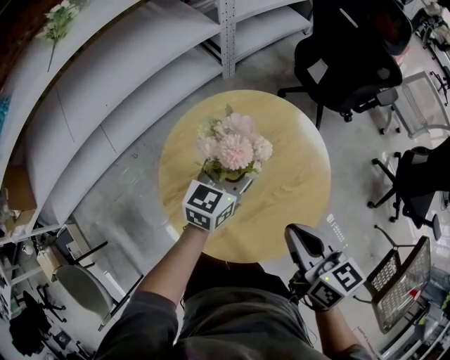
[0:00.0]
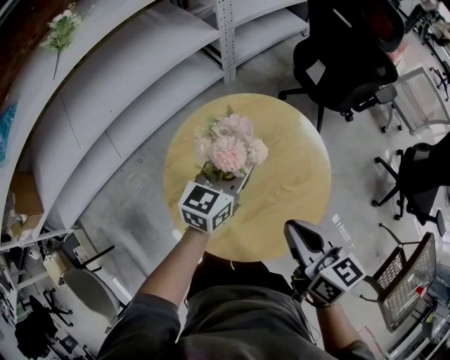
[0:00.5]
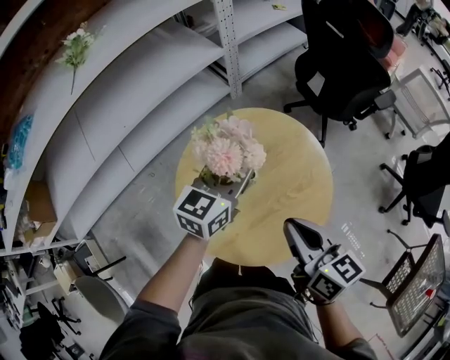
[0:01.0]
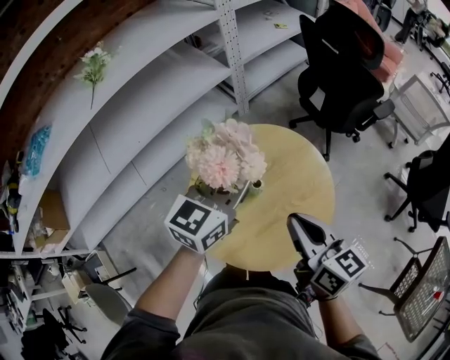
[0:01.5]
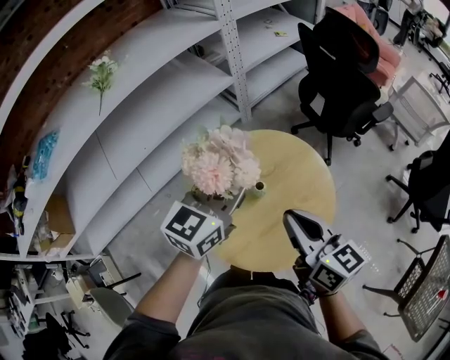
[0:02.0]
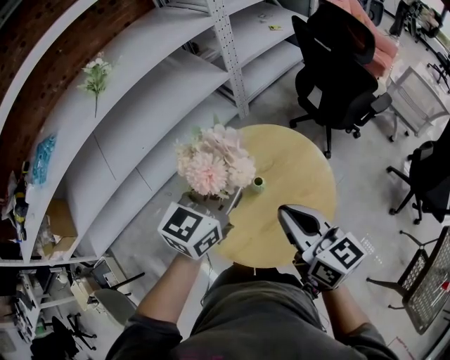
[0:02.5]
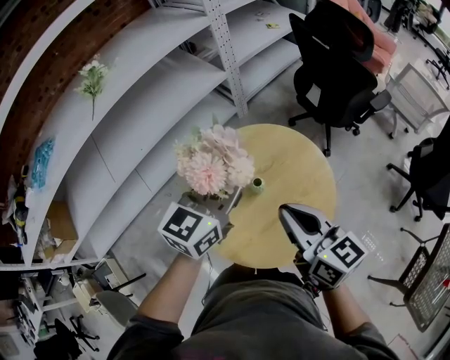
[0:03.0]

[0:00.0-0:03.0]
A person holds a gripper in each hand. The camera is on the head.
0:00.0 to 0:01.5: The left gripper moves upward, some 20 cm, and closes up, while the right gripper shifts some 10 cm upward.
0:01.5 to 0:03.0: The grippers move only a little.

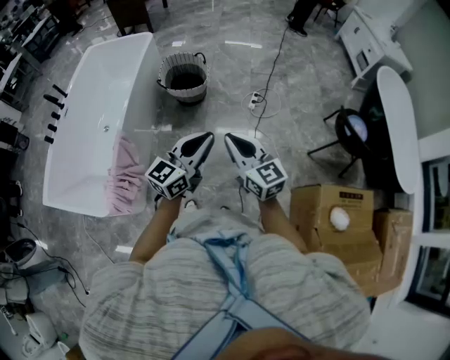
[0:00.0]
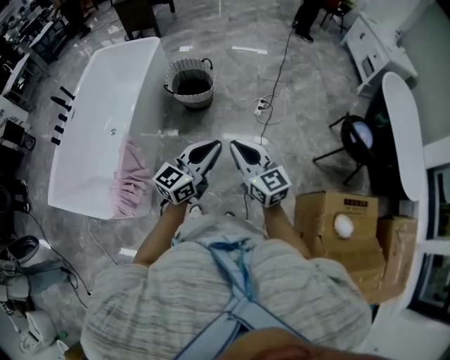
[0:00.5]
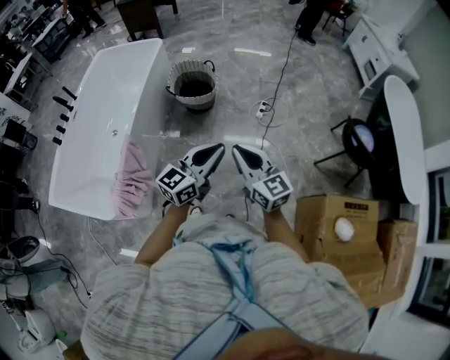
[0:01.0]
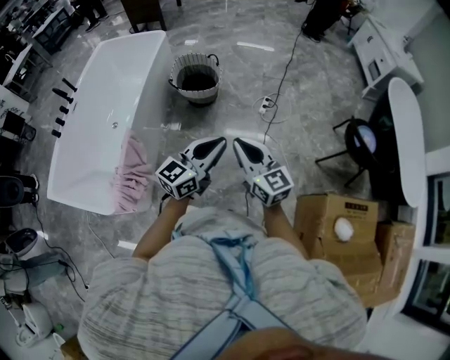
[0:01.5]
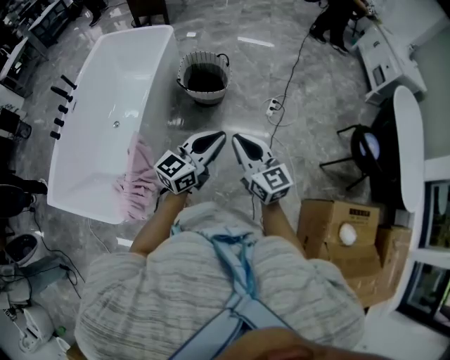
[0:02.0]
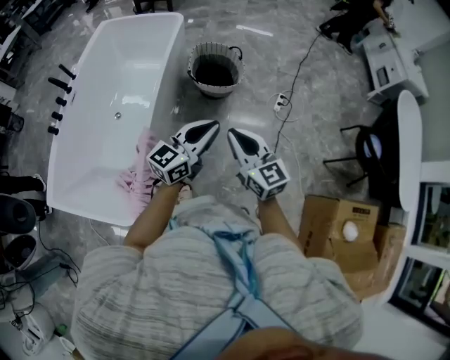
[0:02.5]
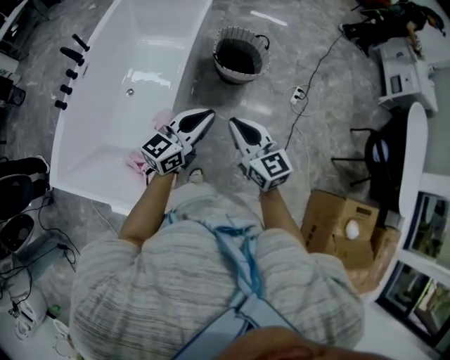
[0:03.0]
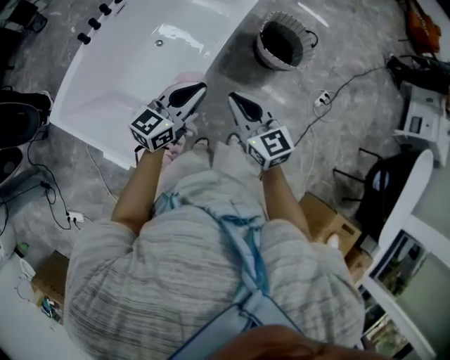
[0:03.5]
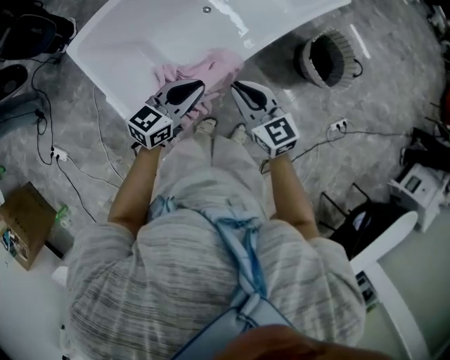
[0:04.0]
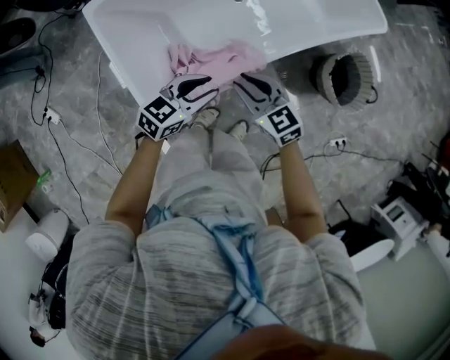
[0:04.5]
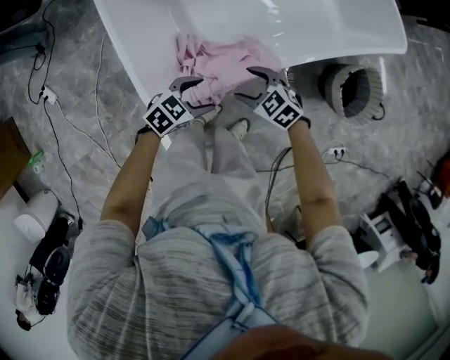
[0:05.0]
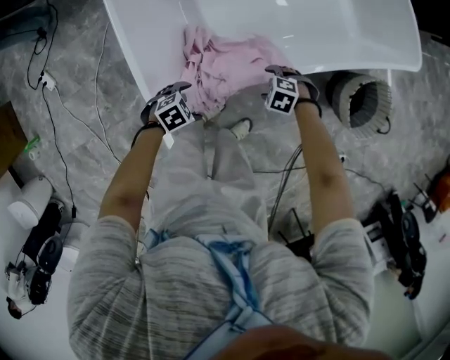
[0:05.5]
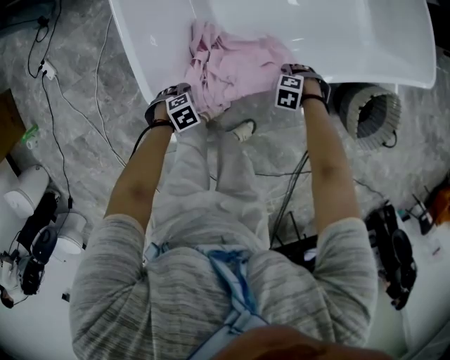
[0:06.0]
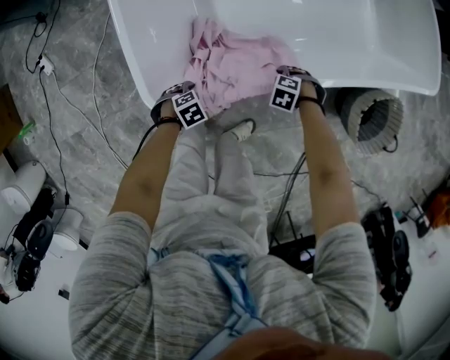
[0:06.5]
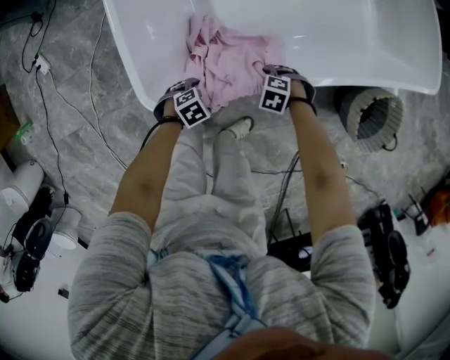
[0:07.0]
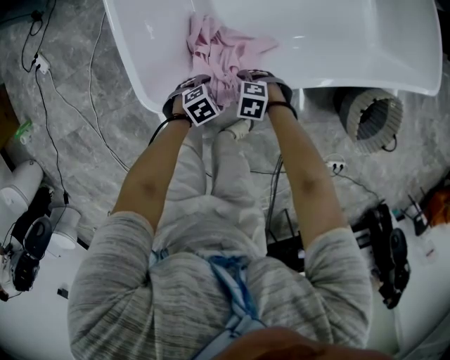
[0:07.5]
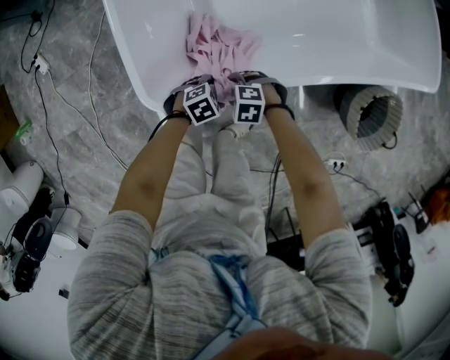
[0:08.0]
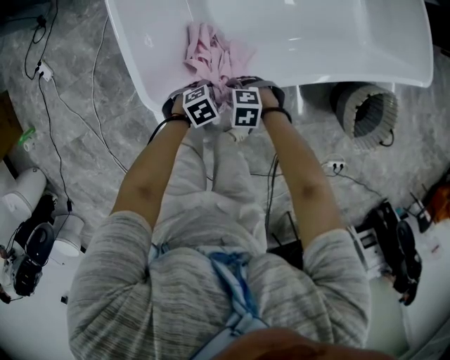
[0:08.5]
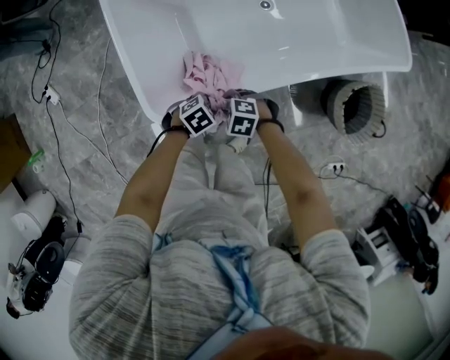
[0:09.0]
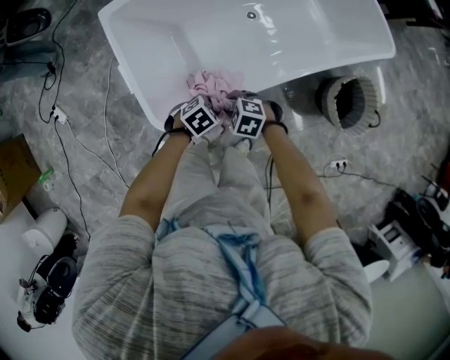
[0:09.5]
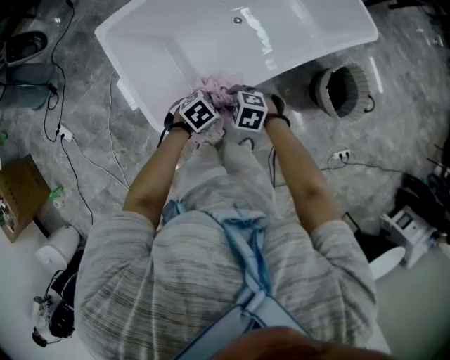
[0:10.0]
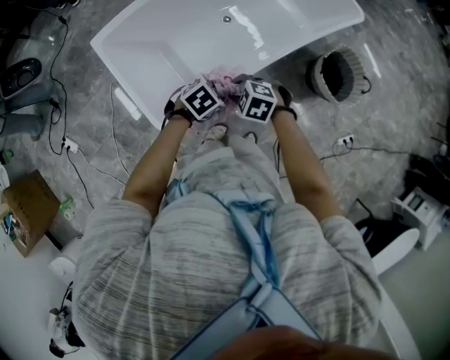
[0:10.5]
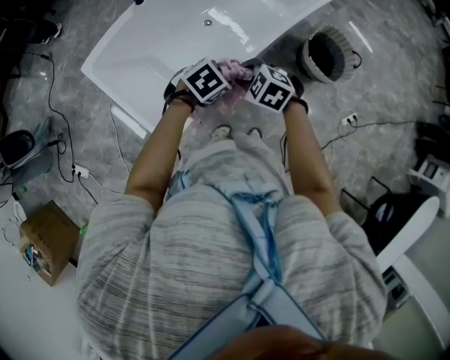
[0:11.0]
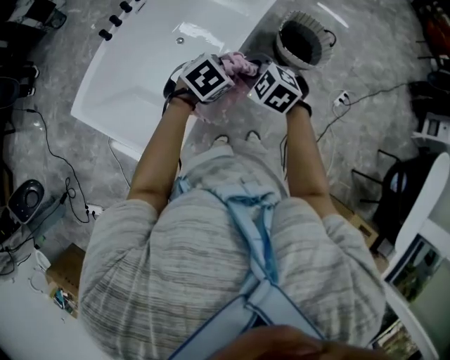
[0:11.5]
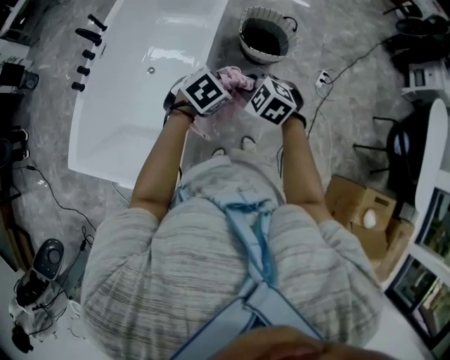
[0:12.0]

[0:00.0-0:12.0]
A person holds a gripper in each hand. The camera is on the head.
0:00.0 to 0:02.0: The grippers both shift to the left and forward by about 15 cm.
0:02.0 to 0:04.0: Both grippers are carried approximately 50 cm. The right gripper turns by about 50 degrees. The left gripper swivels some 40 degrees.
0:04.0 to 0:06.0: Both grippers move downward, about 40 cm. The right gripper points its fingers roughly 60 degrees further downward, and opens its fingers. The left gripper tilts its fingers roughly 60 degrees downward, and opens.
0:06.0 to 0:08.0: The left gripper moves about 10 cm; the right gripper ends up roughly 20 cm from where it was, and swivels about 20 degrees.
0:08.0 to 0:10.0: Both grippers move upward, some 25 cm. The left gripper closes. The right gripper rotates about 30 degrees, and closes up.
0:10.0 to 0:12.0: The right gripper moves some 30 cm, and turns by some 60 degrees; the left gripper ends up some 30 cm from where it was, and rolls clockwise, seen from behind, by some 50 degrees.

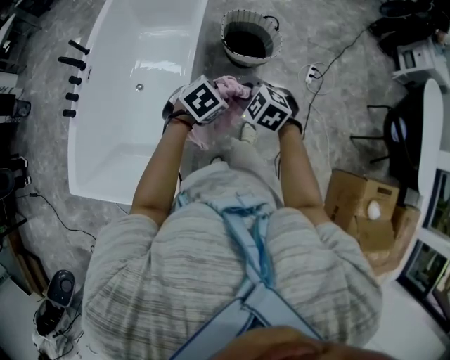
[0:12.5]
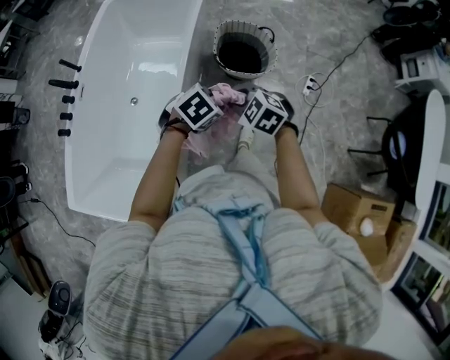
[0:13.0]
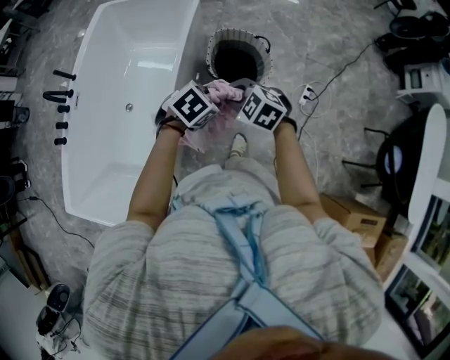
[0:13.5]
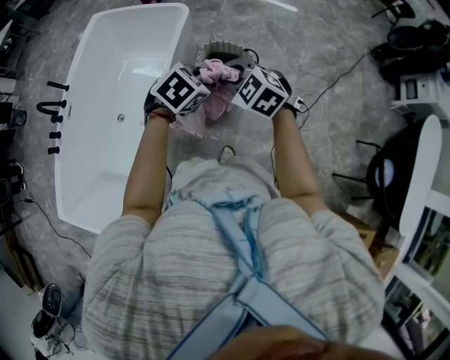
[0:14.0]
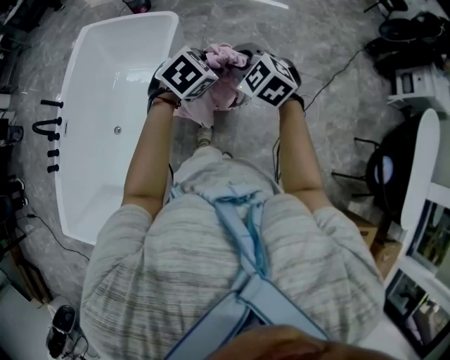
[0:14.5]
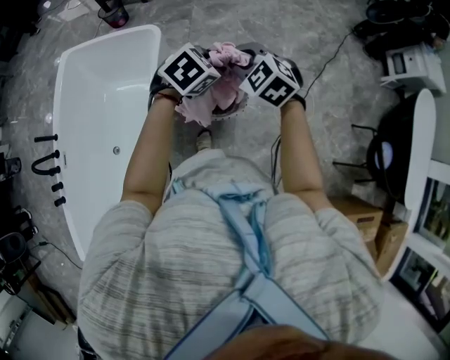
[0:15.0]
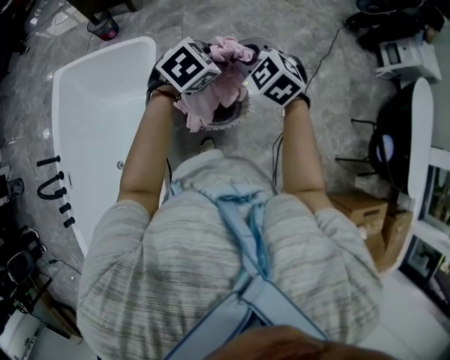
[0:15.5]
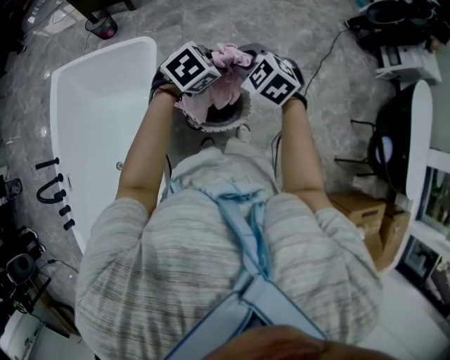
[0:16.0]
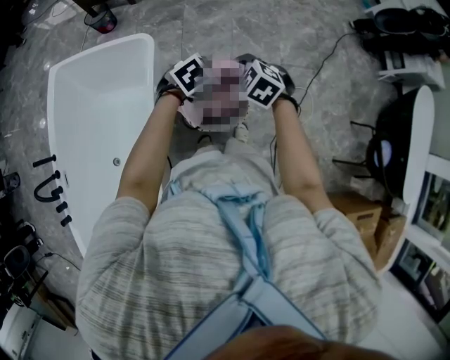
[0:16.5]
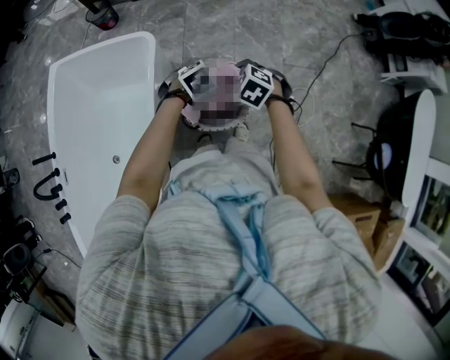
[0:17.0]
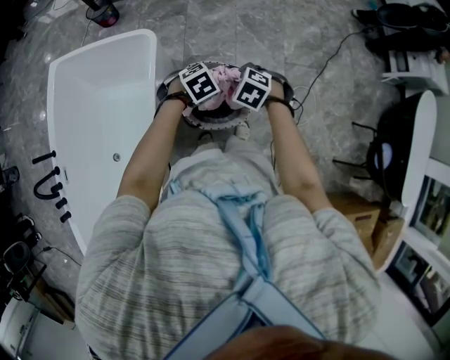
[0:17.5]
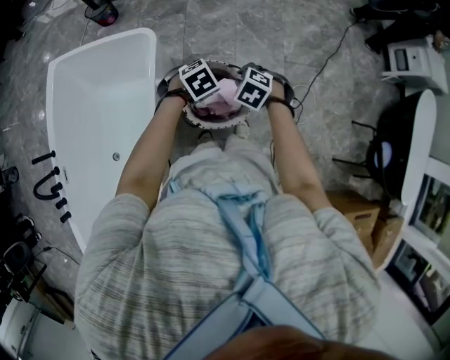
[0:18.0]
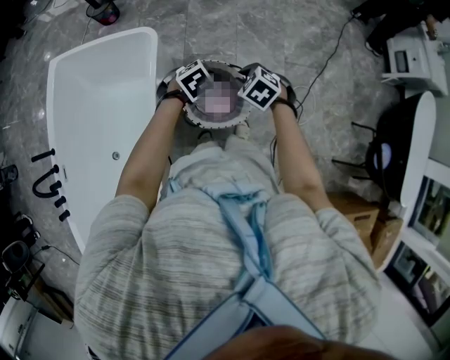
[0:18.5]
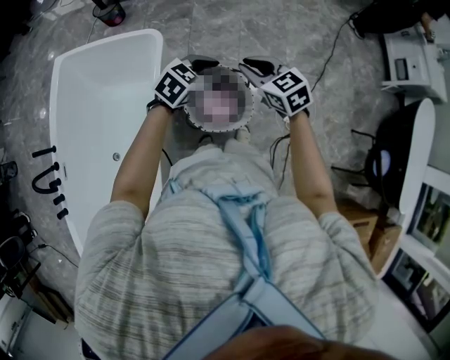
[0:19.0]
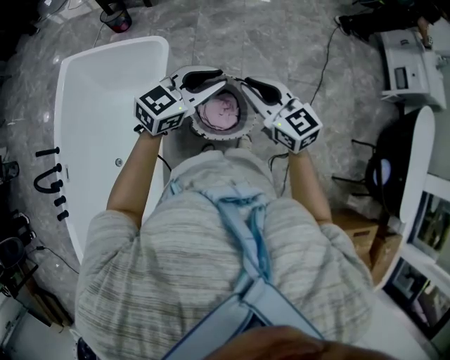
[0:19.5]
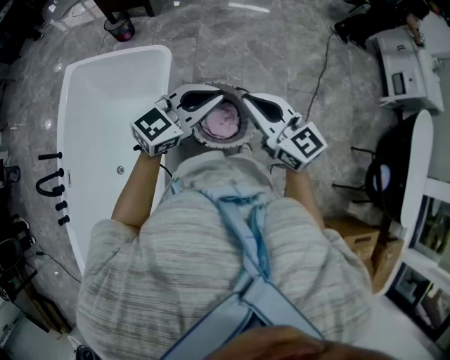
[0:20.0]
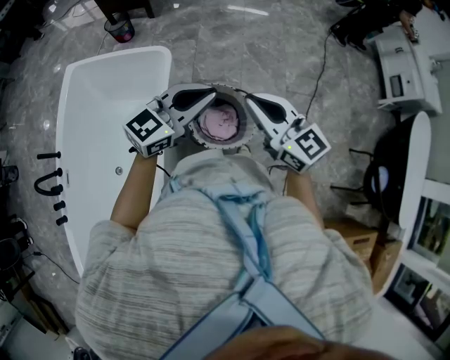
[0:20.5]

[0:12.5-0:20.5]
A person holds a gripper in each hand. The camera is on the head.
0:12.5 to 0:14.5: The pair of grippers is taken about 40 cm.
0:14.5 to 0:16.5: Both grippers travel together forward and downward, about 20 cm. The left gripper swivels some 20 degrees.
0:16.5 to 0:18.5: The two grippers go roughly 5 cm downward.
0:18.5 to 0:20.5: The grippers both shift upward by roughly 25 cm. The right gripper points its fingers roughly 60 degrees further upward; the left gripper tips its fingers upward by some 60 degrees.

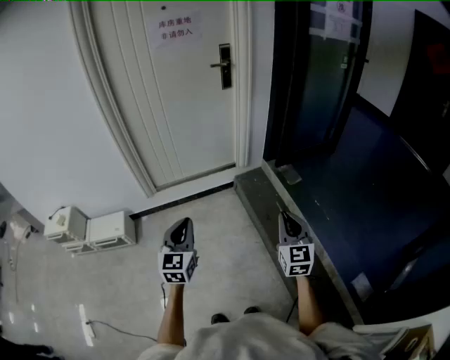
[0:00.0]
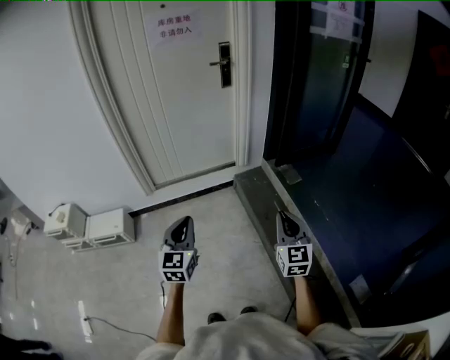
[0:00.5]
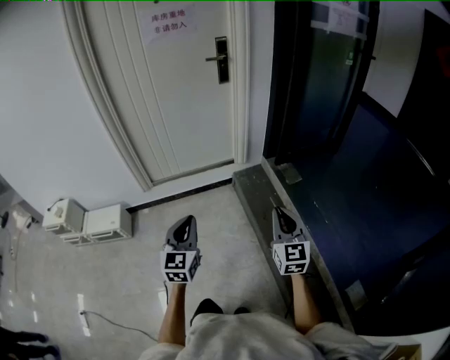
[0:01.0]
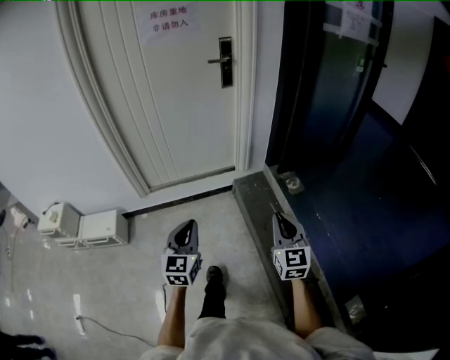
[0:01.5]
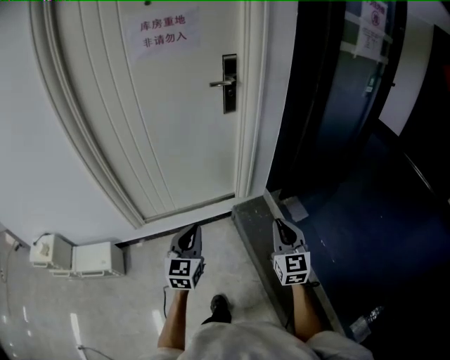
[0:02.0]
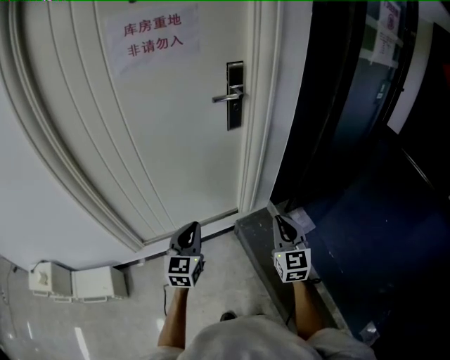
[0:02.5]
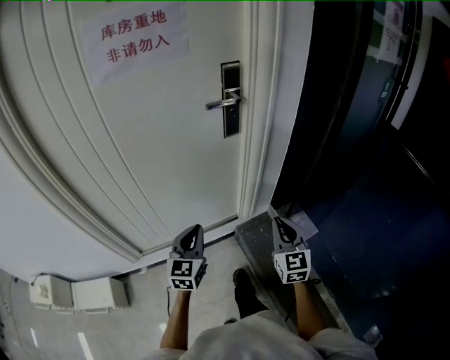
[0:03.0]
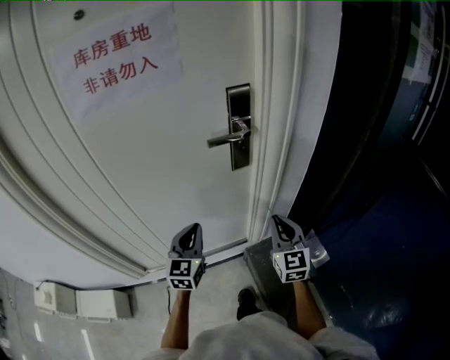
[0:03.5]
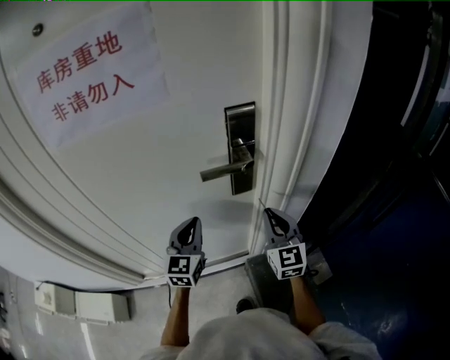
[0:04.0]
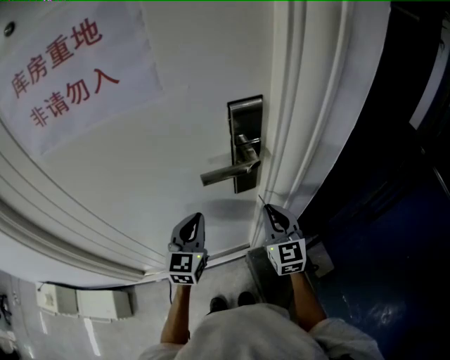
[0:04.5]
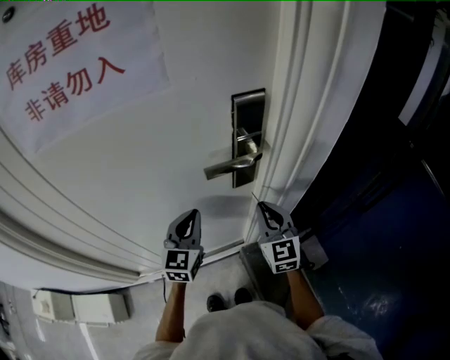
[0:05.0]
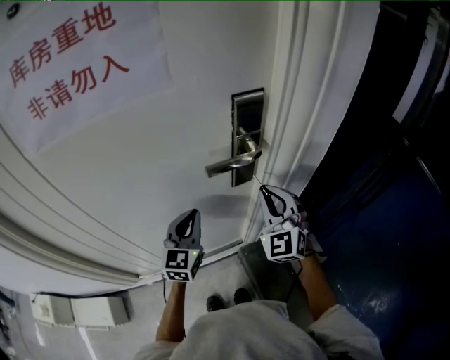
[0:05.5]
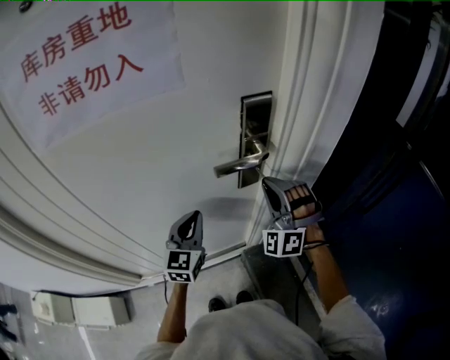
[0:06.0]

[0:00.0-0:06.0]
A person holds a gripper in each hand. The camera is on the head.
0:00.0 to 0:02.0: Both grippers move forward, roughly 35 cm.
0:02.0 to 0:04.0: Both grippers are carried forward, about 60 cm.
0:04.0 to 0:06.0: The right gripper ends up roughly 10 cm from where it was, and twists about 70 degrees counterclockwise, seen from behind.
